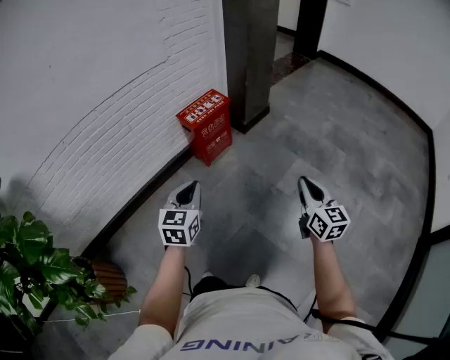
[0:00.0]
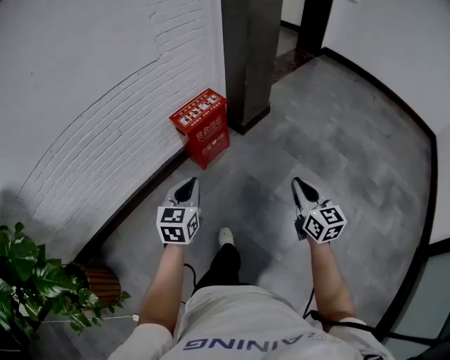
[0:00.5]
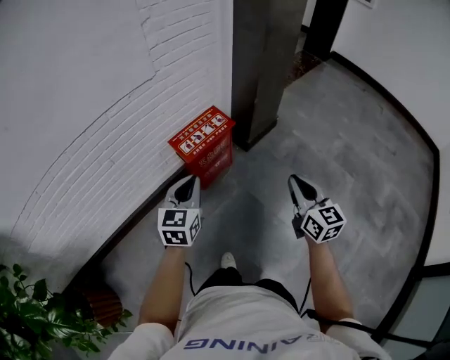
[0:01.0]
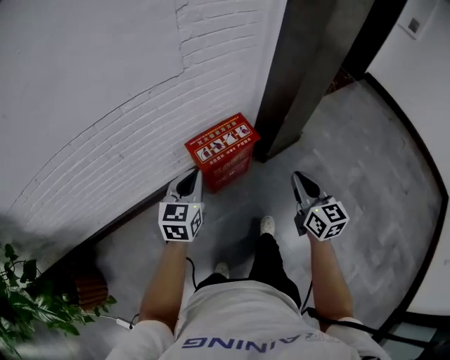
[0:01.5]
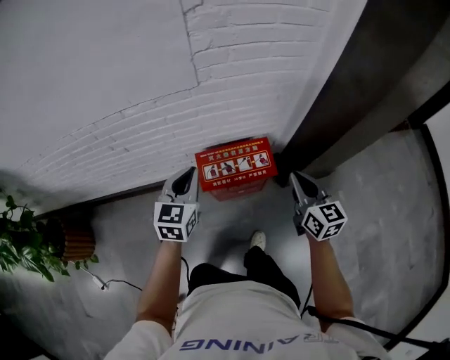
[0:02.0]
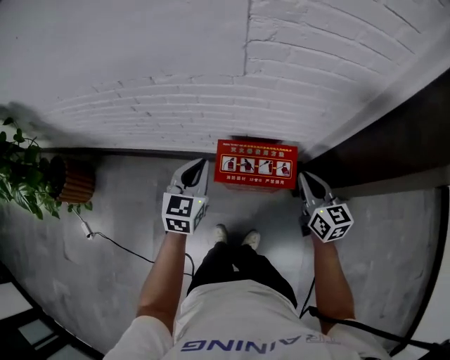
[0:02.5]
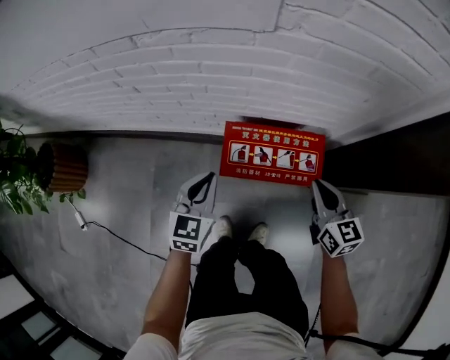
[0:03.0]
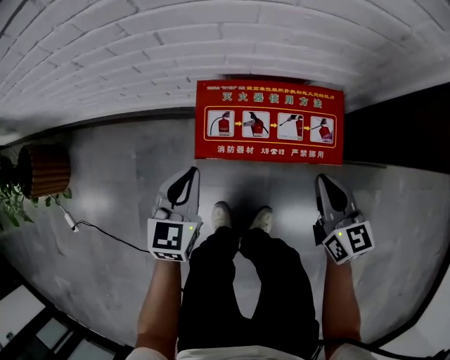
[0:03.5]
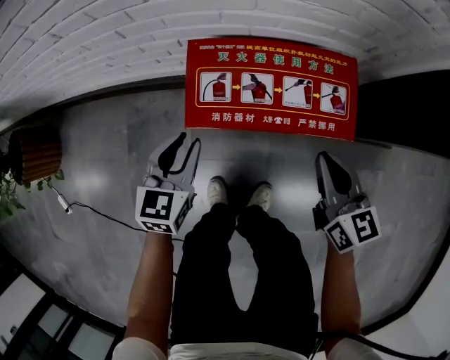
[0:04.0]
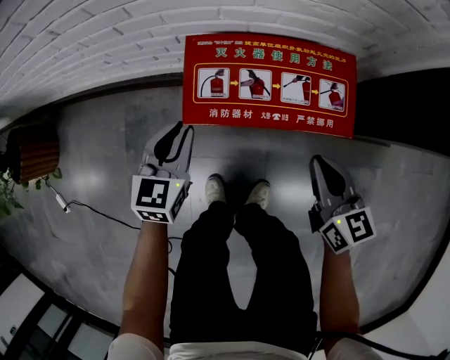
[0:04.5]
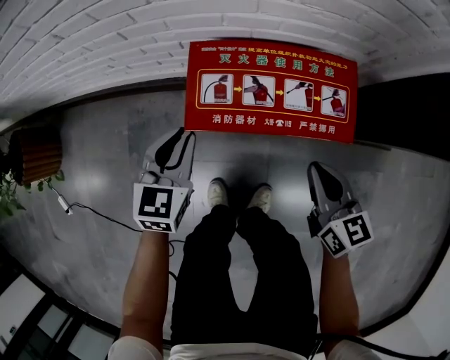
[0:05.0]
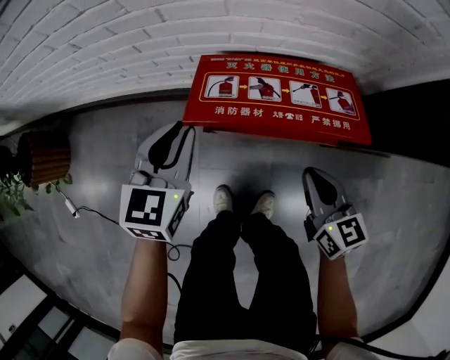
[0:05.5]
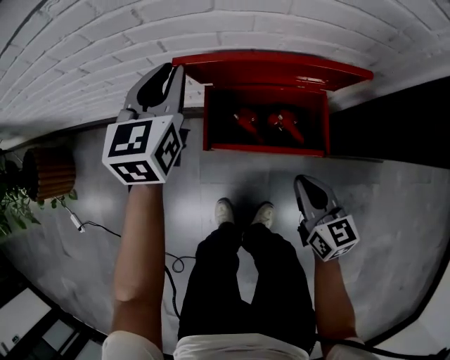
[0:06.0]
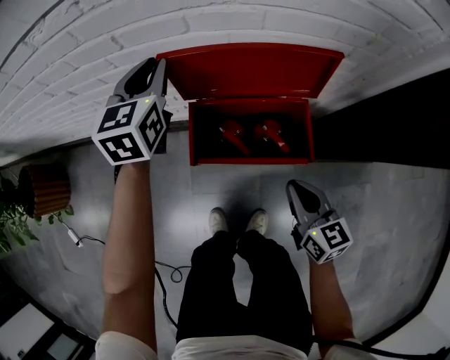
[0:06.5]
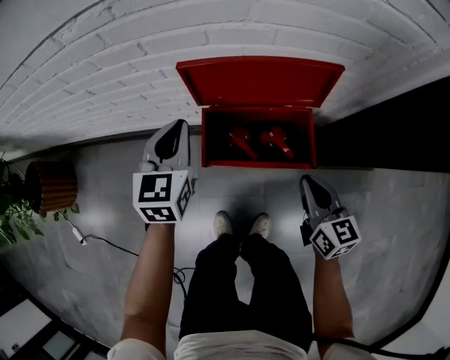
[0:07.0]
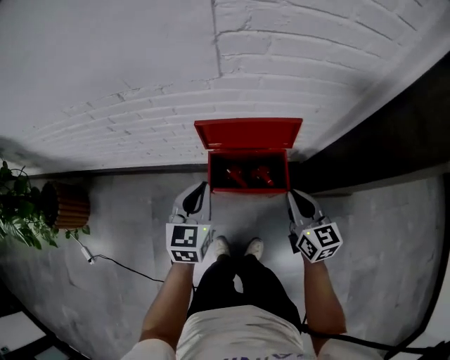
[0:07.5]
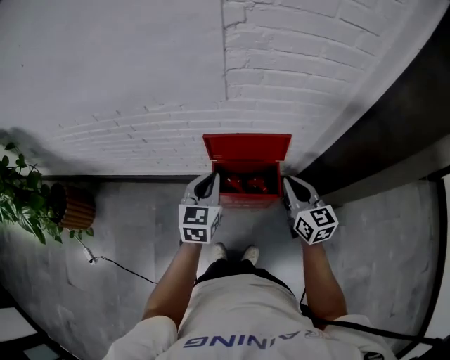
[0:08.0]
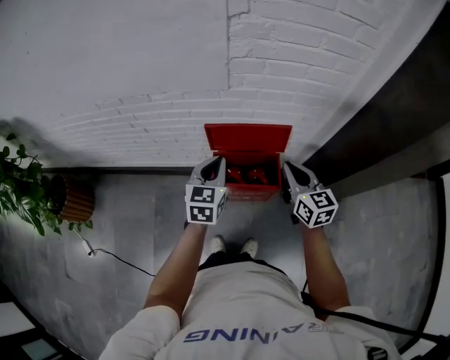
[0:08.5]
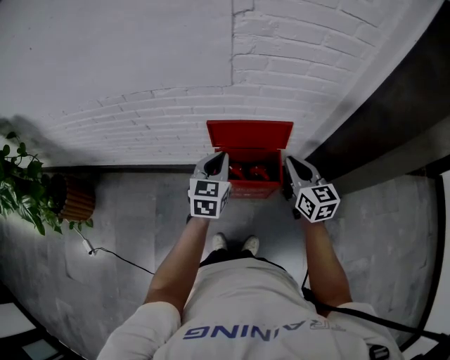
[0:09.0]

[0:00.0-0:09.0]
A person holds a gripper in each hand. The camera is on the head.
0:00.0 to 0:02.0: The pair of grippers is taken roughly 70 cm. The left gripper turns by approximately 30 degrees; the right gripper changes its angle by approximately 40 degrees.
0:02.0 to 0:04.5: The two grippers go roughly 35 cm downward.
0:04.5 to 0:07.0: The left gripper shifts roughly 20 cm upward and forward, while the right gripper heads upward, covering approximately 10 cm.
0:07.0 to 0:09.0: The right gripper travels upward by about 25 cm. The left gripper shifts approximately 20 cm upward and backward.

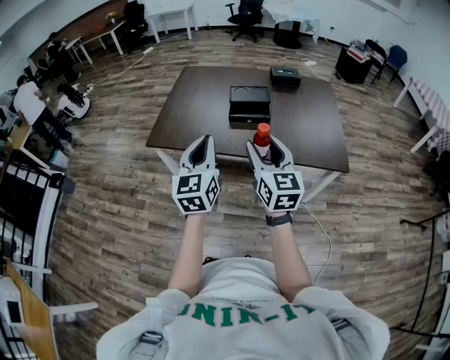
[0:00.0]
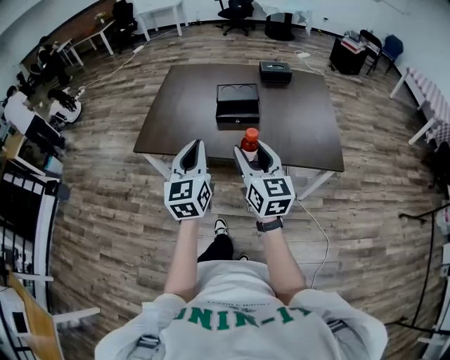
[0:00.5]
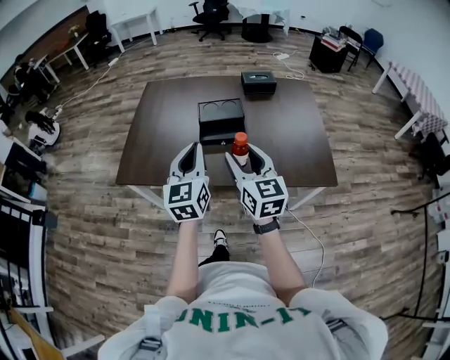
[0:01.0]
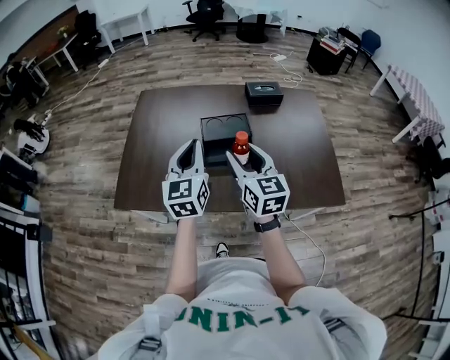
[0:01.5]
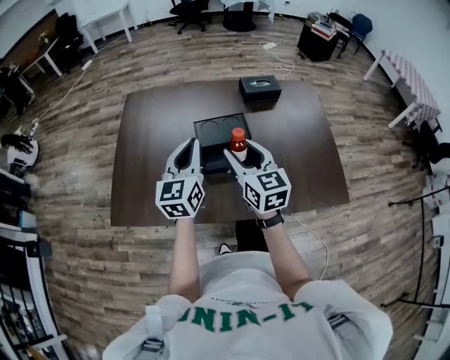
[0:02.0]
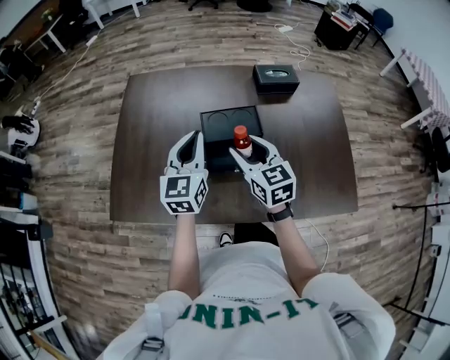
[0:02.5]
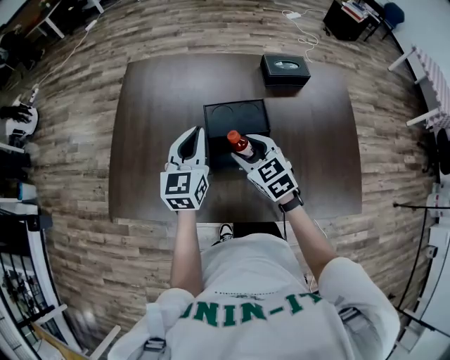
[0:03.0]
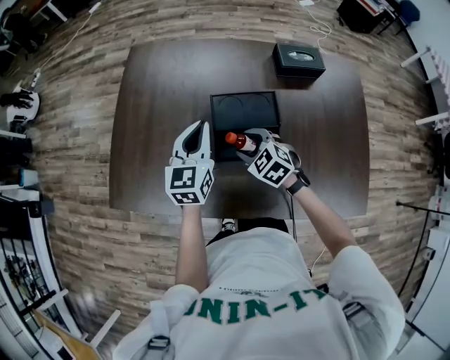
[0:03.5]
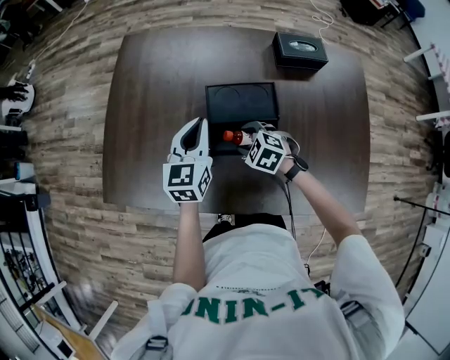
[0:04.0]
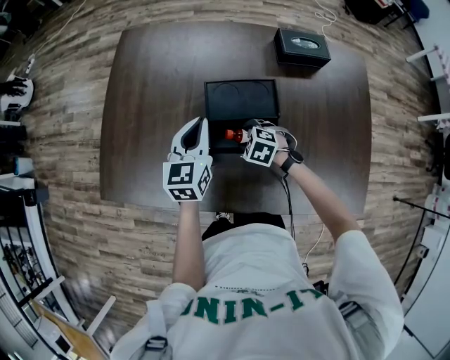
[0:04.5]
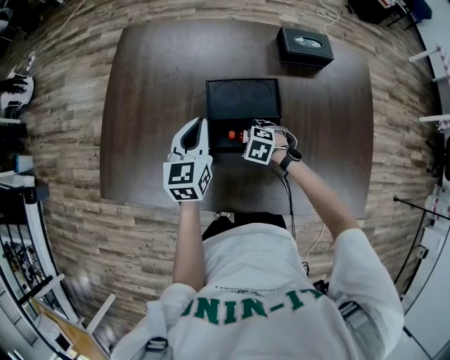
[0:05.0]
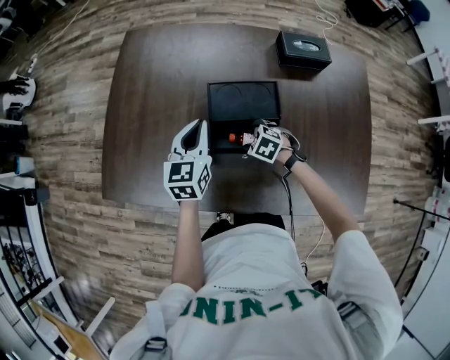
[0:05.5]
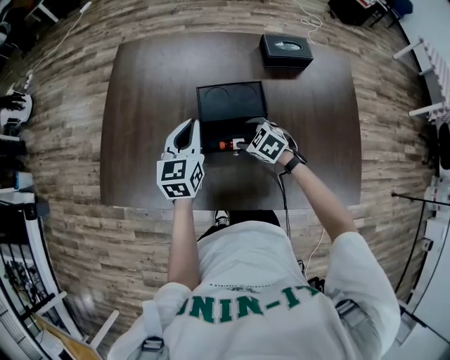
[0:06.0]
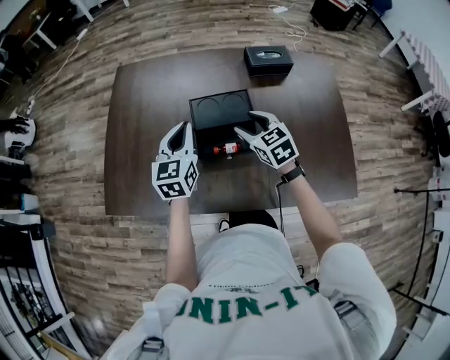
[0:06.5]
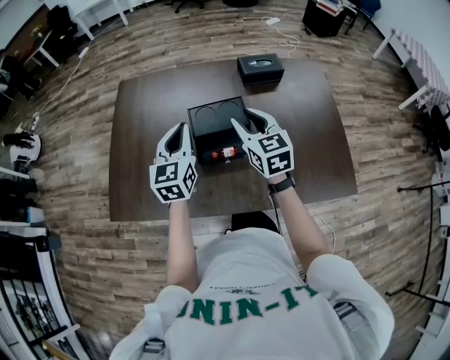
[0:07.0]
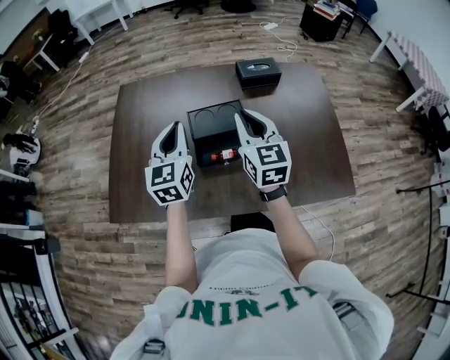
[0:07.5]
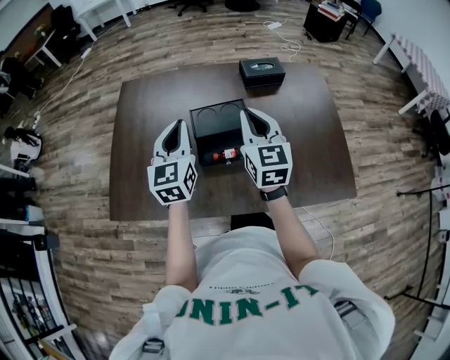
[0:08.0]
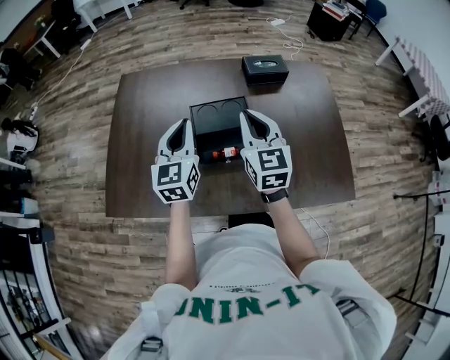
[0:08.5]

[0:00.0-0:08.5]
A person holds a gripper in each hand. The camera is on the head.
0:00.0 to 0:02.0: The pair of grippers is taken forward, roughly 40 cm.
0:02.0 to 0:04.0: The left gripper heads downward and forward, covering about 20 cm, while the right gripper is displaced downward and forward by about 30 cm, and tilts its fingers about 50 degrees downward.
0:04.0 to 0:06.5: The left gripper heads upward, covering approximately 5 cm. The right gripper is displaced upward by approximately 15 cm, and turns by approximately 40 degrees.
0:06.5 to 0:08.5: The left gripper is displaced upward by roughly 5 cm, while the right gripper heads upward, covering some 15 cm, turns by roughly 30 degrees, and closes up.

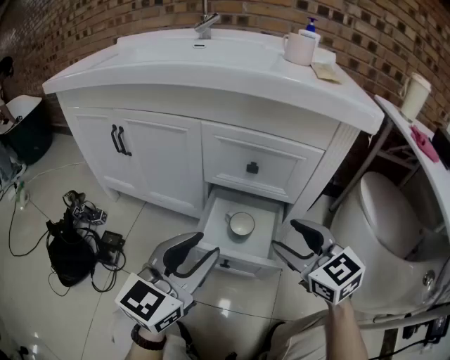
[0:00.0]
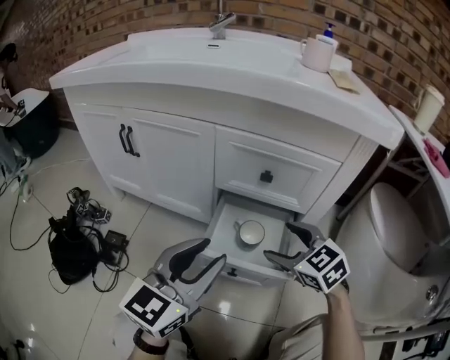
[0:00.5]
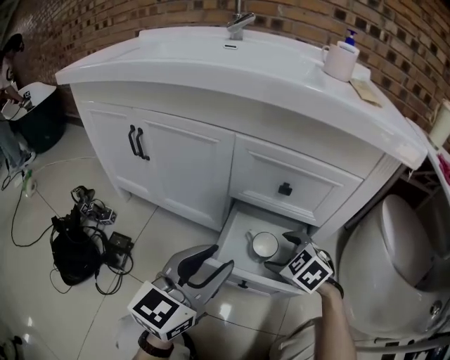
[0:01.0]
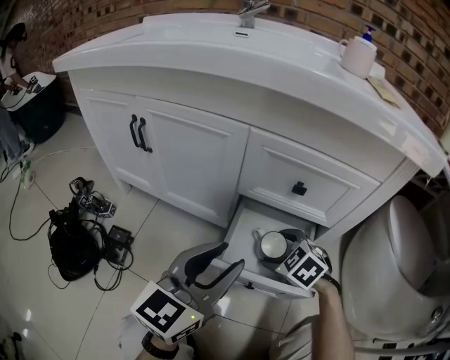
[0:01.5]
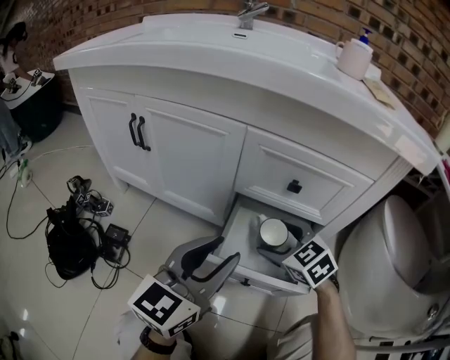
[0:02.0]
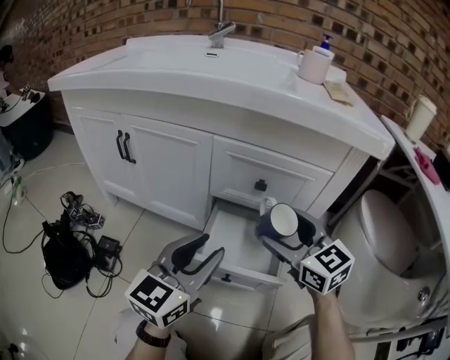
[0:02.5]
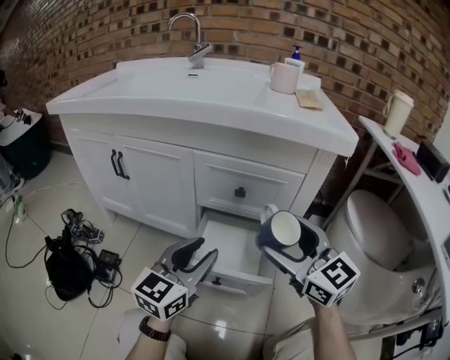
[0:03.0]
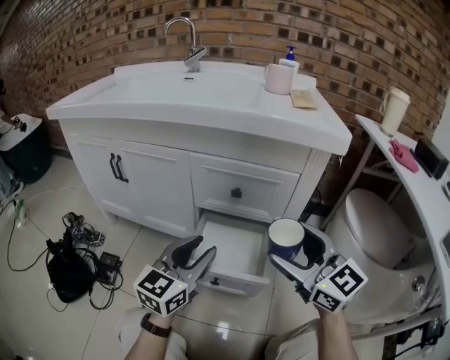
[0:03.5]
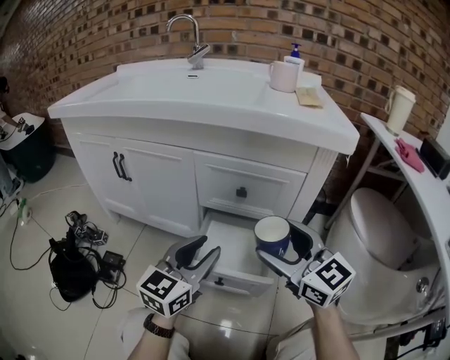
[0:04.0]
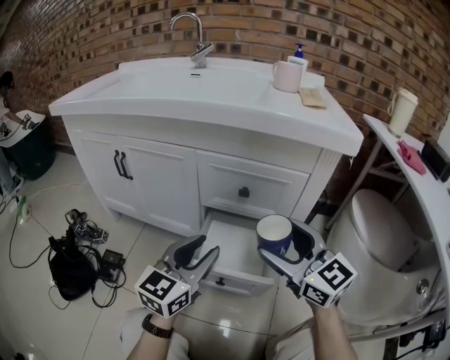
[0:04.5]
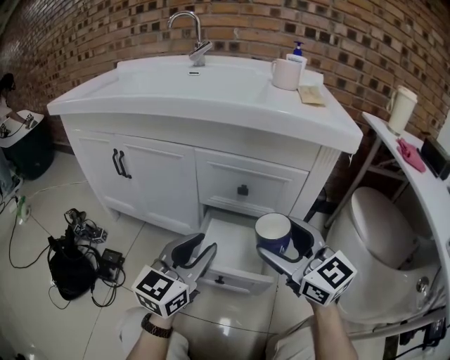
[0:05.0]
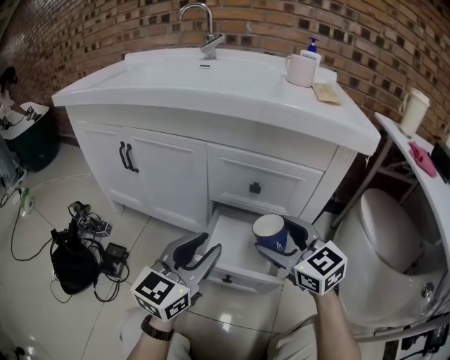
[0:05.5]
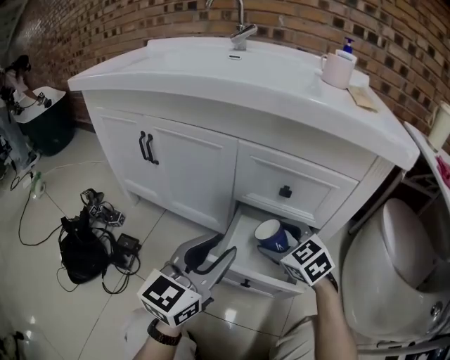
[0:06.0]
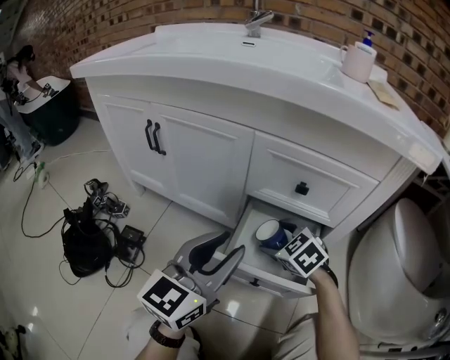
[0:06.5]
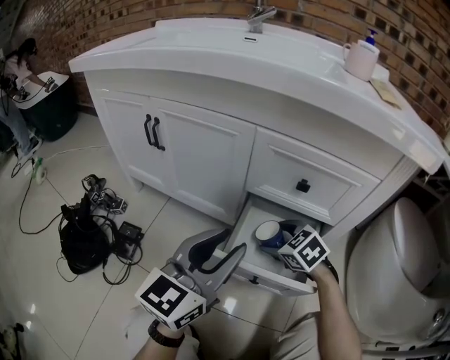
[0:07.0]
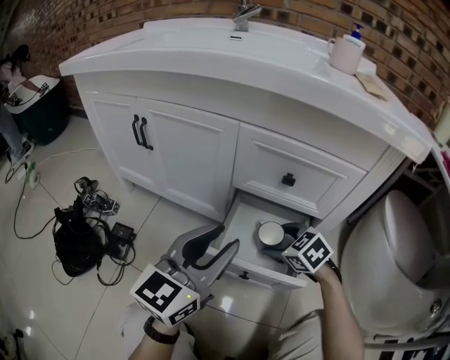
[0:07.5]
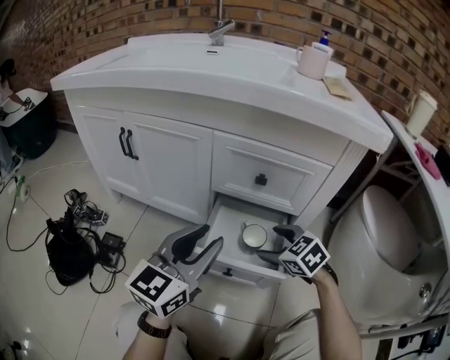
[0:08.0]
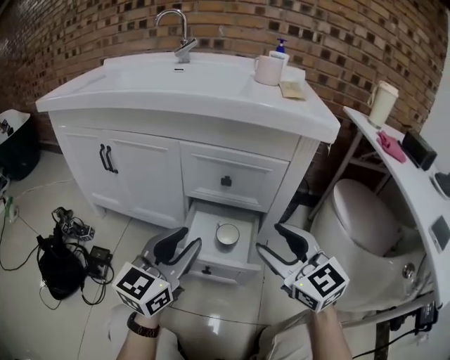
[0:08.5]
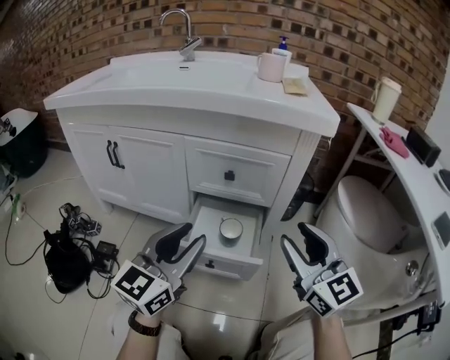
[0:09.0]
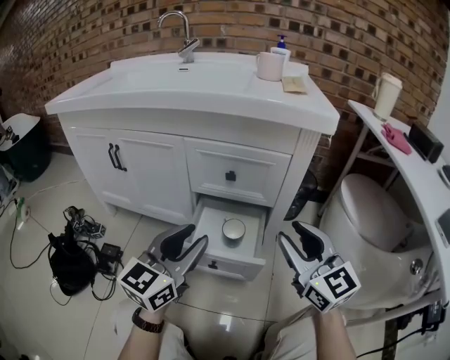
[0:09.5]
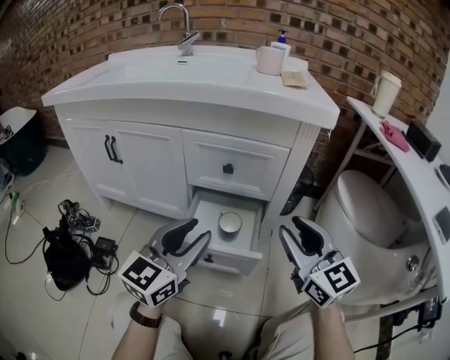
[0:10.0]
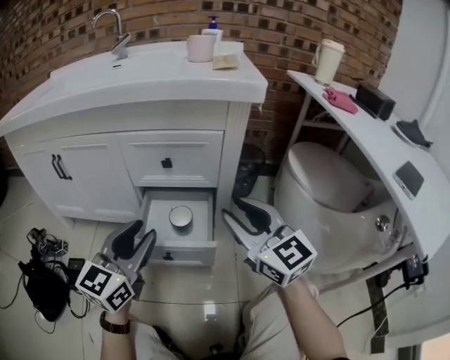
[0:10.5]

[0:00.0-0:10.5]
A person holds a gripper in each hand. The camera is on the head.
0:00.0 to 0:02.0: The right gripper travels downward, forward and to the left by approximately 15 cm, and swivels about 20 degrees, while the left gripper shifts about 5 cm forward.
0:02.0 to 0:04.0: The right gripper is displaced upward, backward and to the right by about 20 cm, and tilts its fingers roughly 40 degrees upward; the left gripper shifts some 5 cm to the right.
0:04.0 to 0:06.5: The right gripper shifts about 25 cm downward, forward and to the left, and tilts its fingers some 50 degrees downward; the left gripper heads to the left, covering about 5 cm.
0:06.5 to 0:08.5: The left gripper changes place by about 5 cm. Meanwhile the right gripper heads upward, backward and to the right, covering about 25 cm, and angles its fingers upward, by about 40 degrees.
